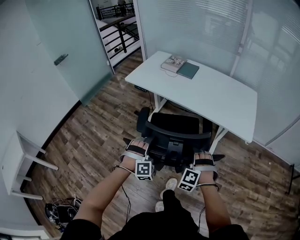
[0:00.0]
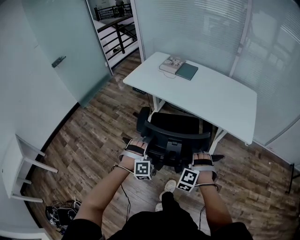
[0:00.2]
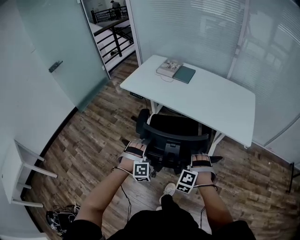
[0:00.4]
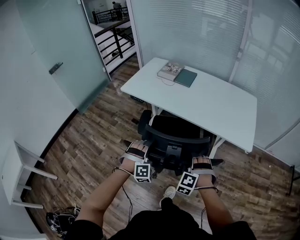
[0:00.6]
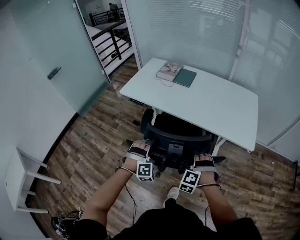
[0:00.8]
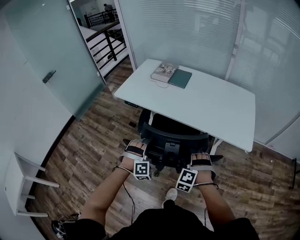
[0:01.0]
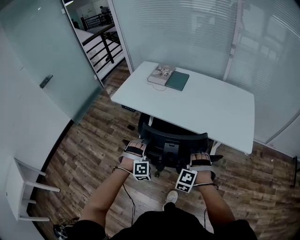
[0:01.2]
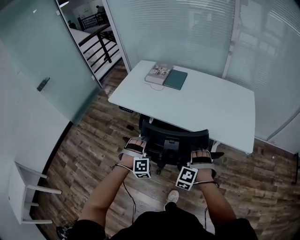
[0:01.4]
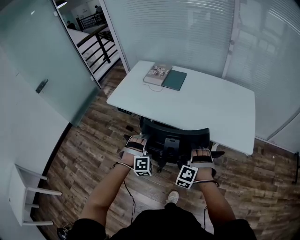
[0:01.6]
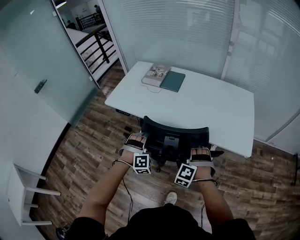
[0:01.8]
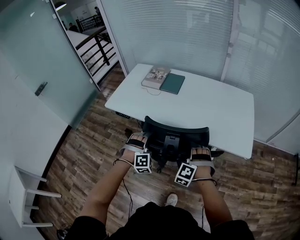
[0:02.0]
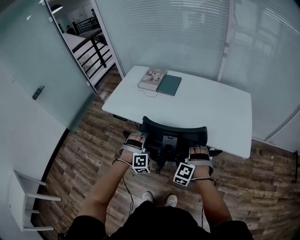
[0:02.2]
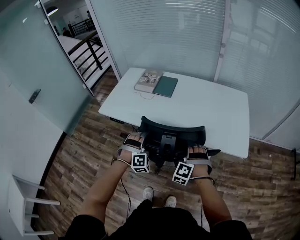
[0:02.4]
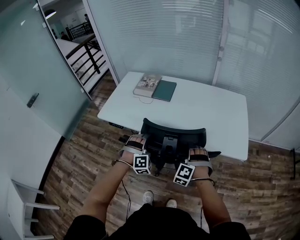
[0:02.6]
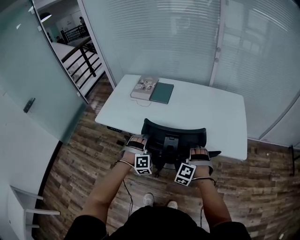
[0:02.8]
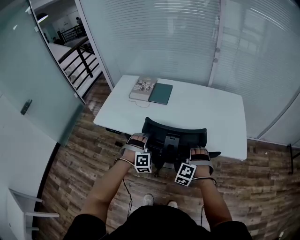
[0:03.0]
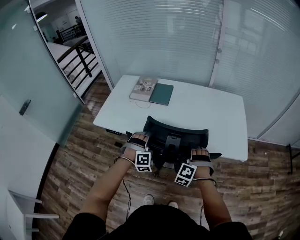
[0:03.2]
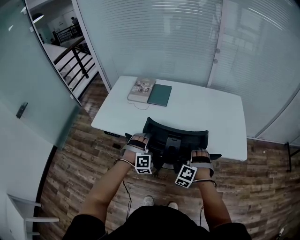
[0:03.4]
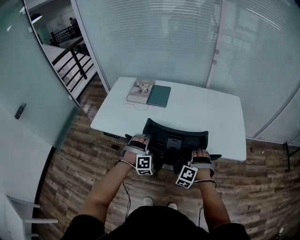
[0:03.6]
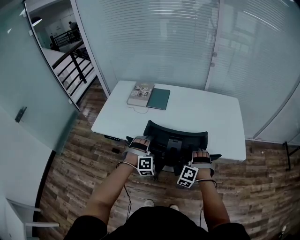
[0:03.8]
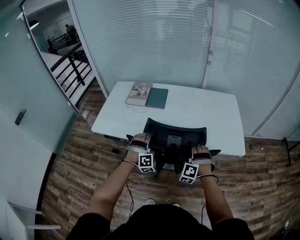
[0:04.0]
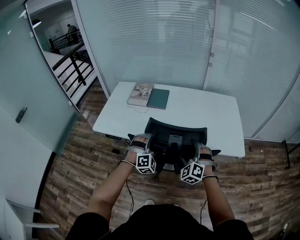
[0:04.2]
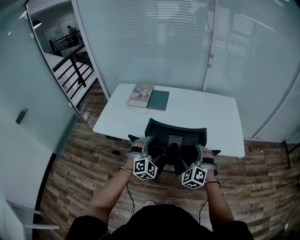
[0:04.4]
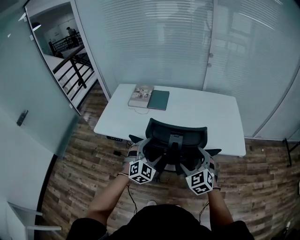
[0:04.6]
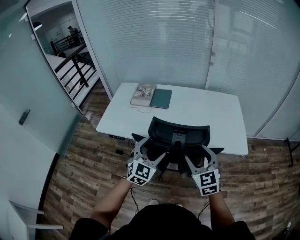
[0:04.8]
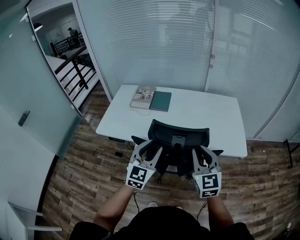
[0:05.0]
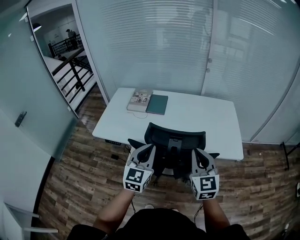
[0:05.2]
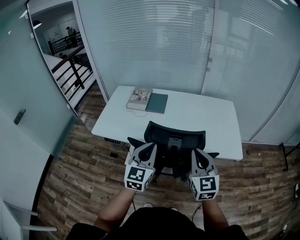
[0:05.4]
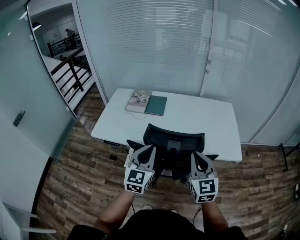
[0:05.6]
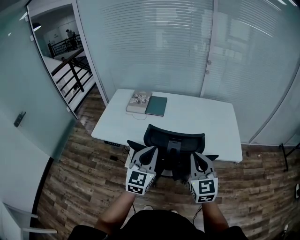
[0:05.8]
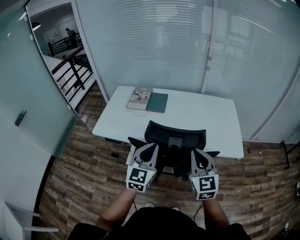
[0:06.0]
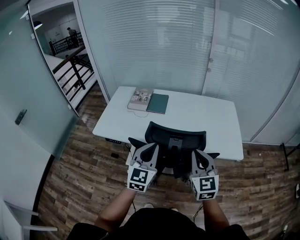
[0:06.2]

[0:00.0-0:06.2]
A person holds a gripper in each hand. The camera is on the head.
0:00.0 to 0:01.6: The left gripper changes place by roughly 20 cm.
0:01.6 to 0:03.2: The left gripper moves roughly 15 cm.
0:03.2 to 0:04.6: The left gripper goes approximately 10 cm upward, and rotates about 40 degrees.
0:04.6 to 0:06.2: The left gripper goes about 10 cm upward, turns by some 40 degrees, and closes up.

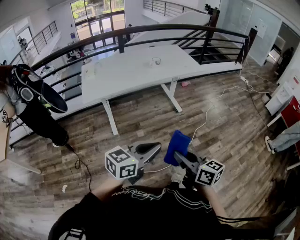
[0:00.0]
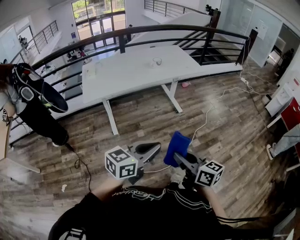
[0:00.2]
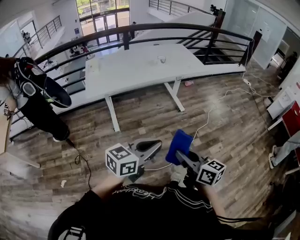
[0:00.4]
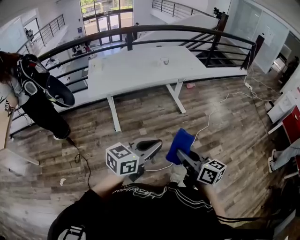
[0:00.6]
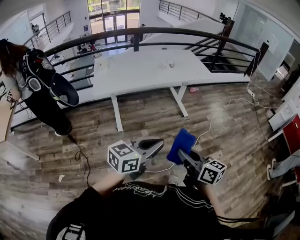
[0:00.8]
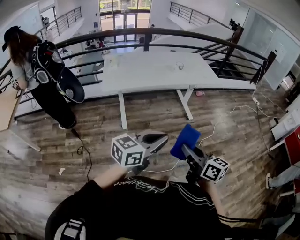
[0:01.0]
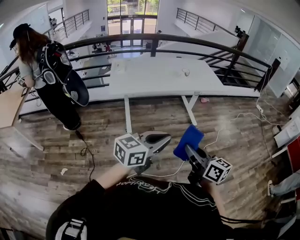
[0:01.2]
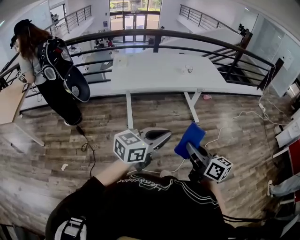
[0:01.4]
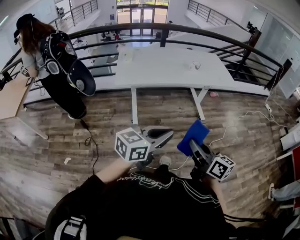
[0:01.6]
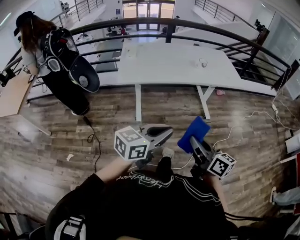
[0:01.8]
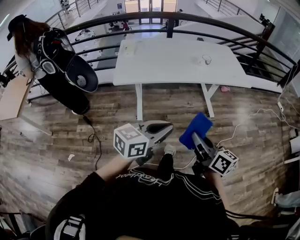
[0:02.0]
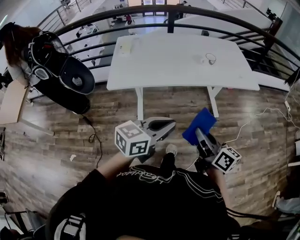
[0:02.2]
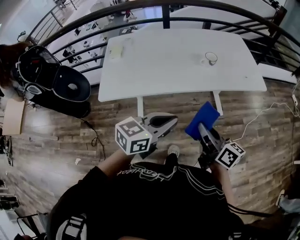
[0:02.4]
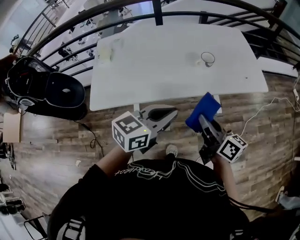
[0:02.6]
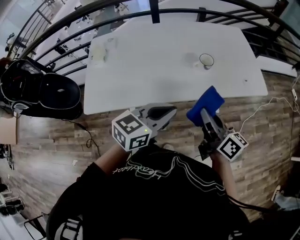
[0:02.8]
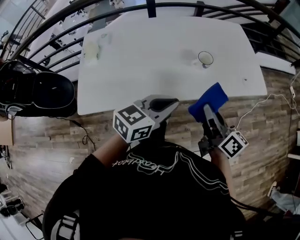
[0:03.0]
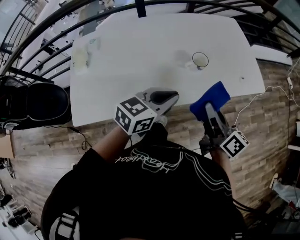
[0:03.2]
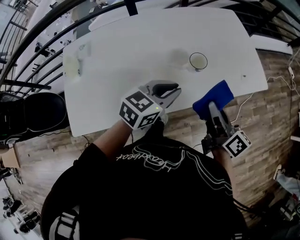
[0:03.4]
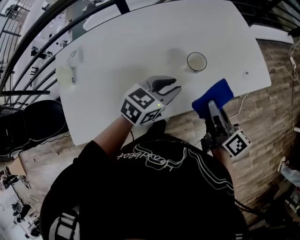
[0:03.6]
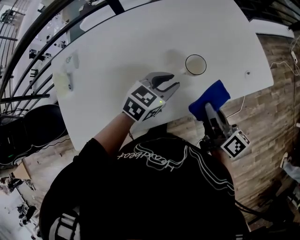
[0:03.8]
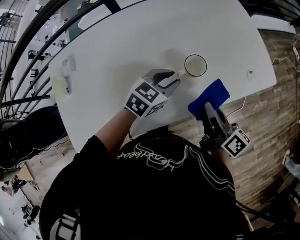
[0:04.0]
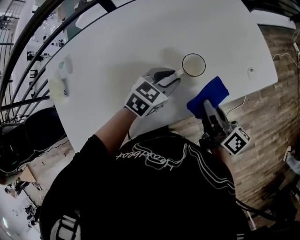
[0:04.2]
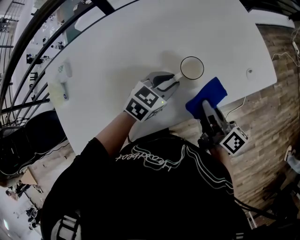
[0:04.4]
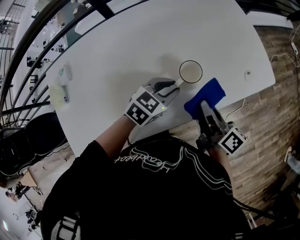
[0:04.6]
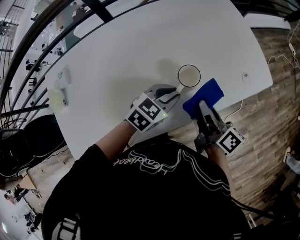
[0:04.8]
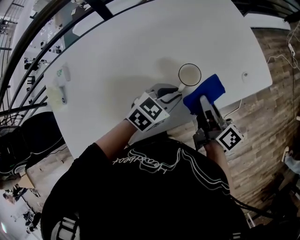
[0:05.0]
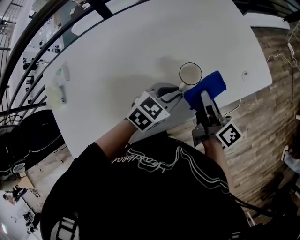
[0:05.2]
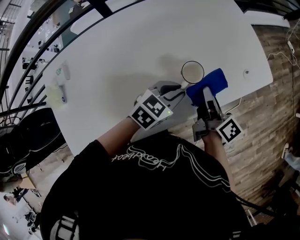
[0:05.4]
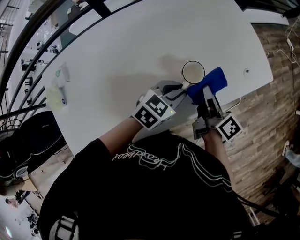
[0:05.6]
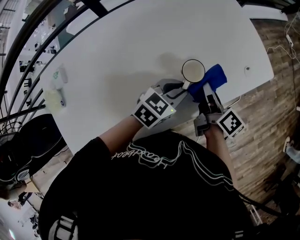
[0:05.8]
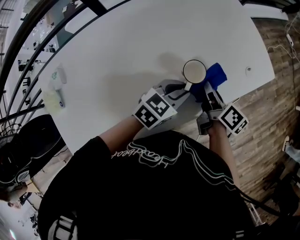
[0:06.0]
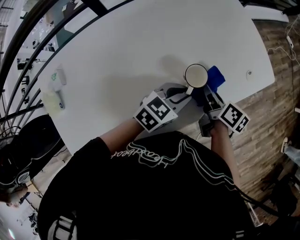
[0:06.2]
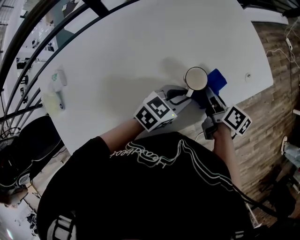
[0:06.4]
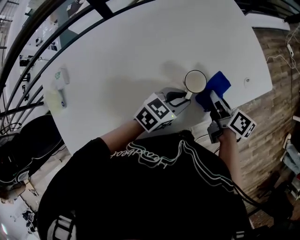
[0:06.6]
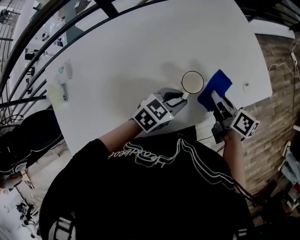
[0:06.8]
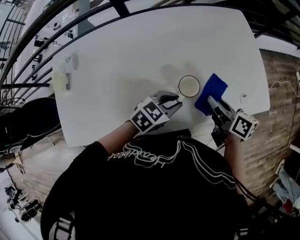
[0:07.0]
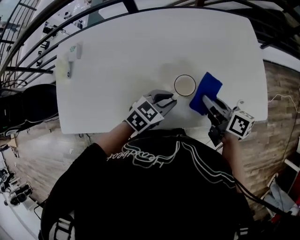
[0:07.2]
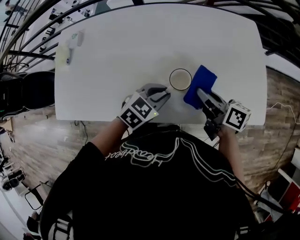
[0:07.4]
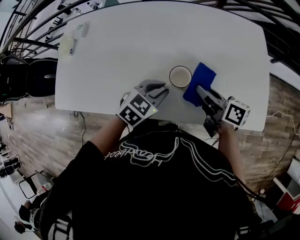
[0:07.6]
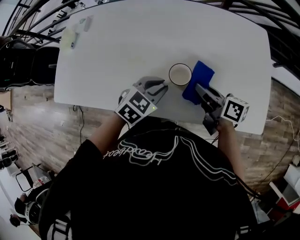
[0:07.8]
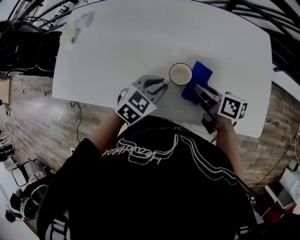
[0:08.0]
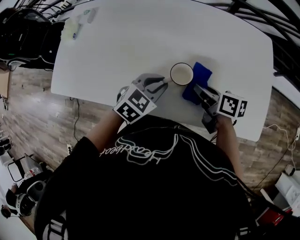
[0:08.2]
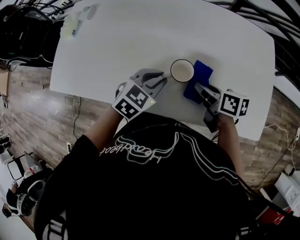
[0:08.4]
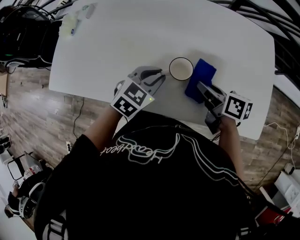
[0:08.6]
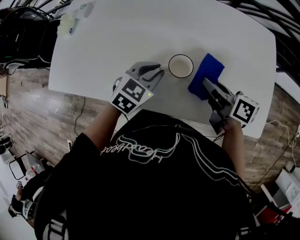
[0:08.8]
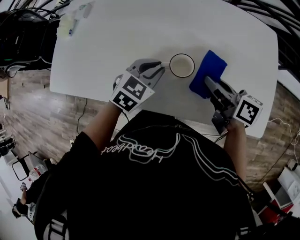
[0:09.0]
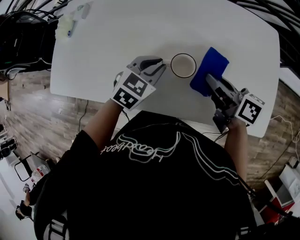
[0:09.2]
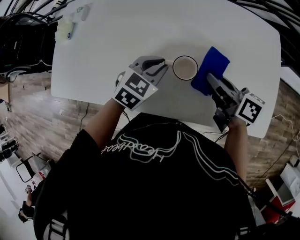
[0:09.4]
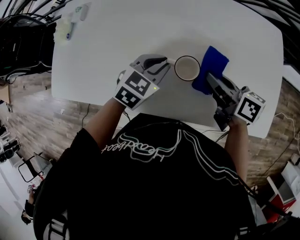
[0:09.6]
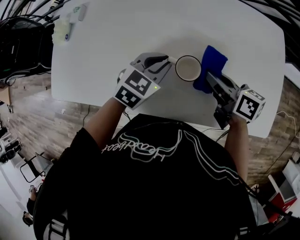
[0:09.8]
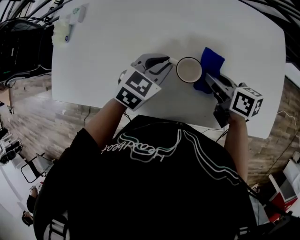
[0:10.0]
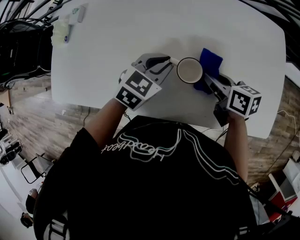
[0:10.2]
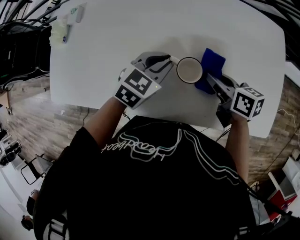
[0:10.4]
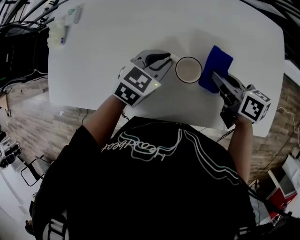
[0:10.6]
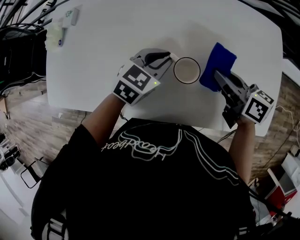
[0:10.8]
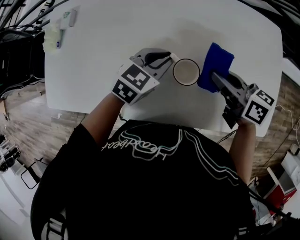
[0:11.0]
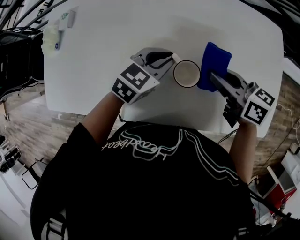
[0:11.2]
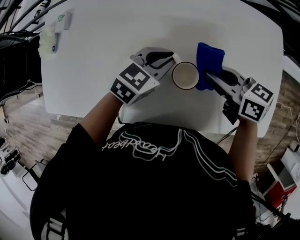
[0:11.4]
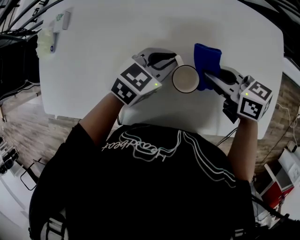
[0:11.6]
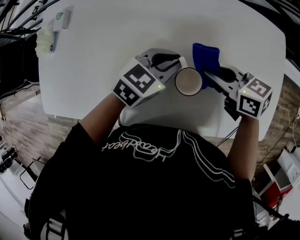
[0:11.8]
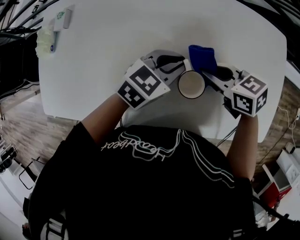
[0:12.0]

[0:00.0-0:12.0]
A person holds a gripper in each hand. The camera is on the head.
0:00.0 to 0:01.6: Both grippers travel together to the left, about 10 cm.
0:01.6 to 0:03.0: The two grippers travel together, forward, roughly 60 cm.
0:03.0 to 0:04.4: The grippers both shift forward and downward by about 25 cm. The right gripper turns by approximately 20 degrees; the left gripper swivels approximately 30 degrees, and opens its fingers.
0:04.4 to 0:06.0: The right gripper travels forward and downward by some 10 cm.
0:06.0 to 0:07.6: The left gripper turns by roughly 30 degrees. The right gripper goes approximately 5 cm upward, and turns by roughly 60 degrees.
0:07.6 to 0:09.0: The left gripper moves roughly 5 cm.
0:09.0 to 0:10.4: The left gripper heads forward, covering approximately 5 cm, while the right gripper heads downward, covering roughly 5 cm.
0:10.4 to 0:12.0: The right gripper changes place by approximately 10 cm, and turns by approximately 30 degrees. The left gripper ends up about 5 cm from where it was.

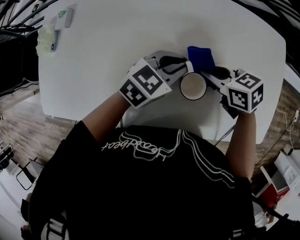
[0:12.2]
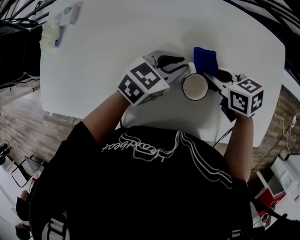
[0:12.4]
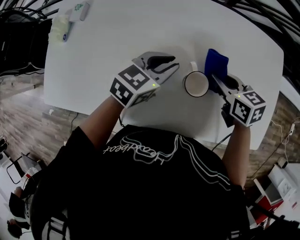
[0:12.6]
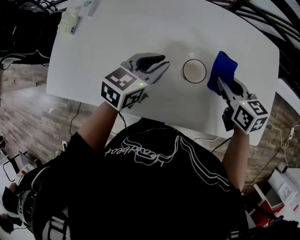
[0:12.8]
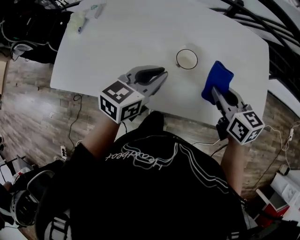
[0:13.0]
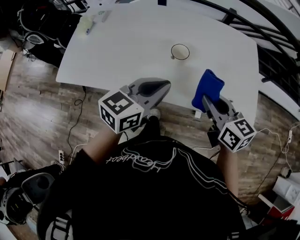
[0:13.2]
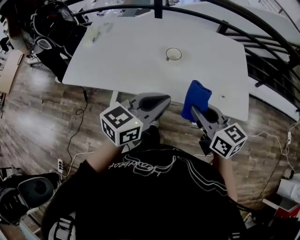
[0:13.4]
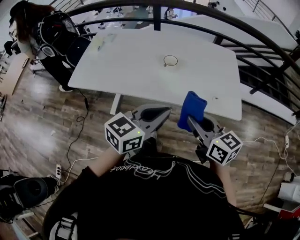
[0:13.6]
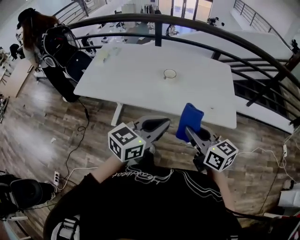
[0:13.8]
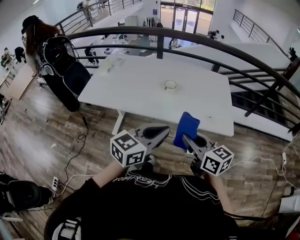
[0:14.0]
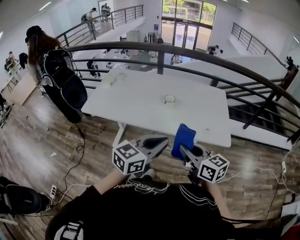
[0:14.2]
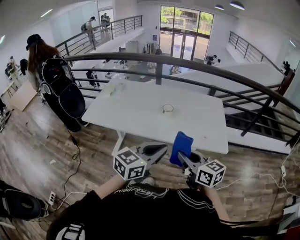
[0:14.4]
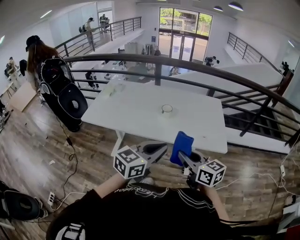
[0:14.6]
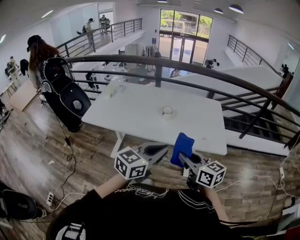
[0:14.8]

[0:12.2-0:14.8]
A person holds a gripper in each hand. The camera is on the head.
0:12.2 to 0:13.4: The left gripper changes place by some 40 cm, and rotates approximately 30 degrees. Meanwhile the right gripper changes place by some 40 cm, and changes its angle by about 40 degrees.
0:13.4 to 0:14.8: Both grippers travel together backward and upward, about 20 cm.

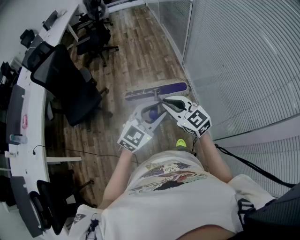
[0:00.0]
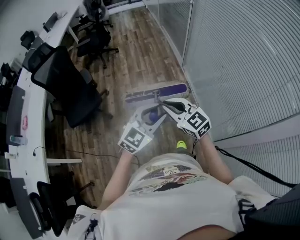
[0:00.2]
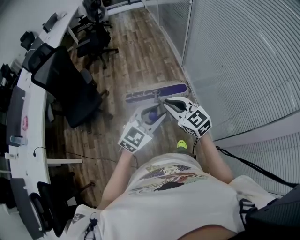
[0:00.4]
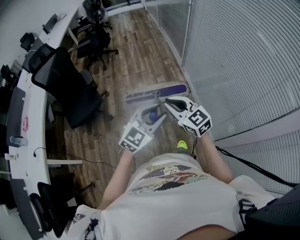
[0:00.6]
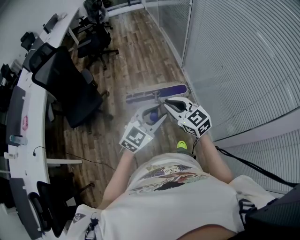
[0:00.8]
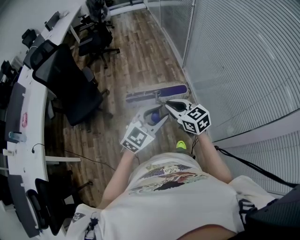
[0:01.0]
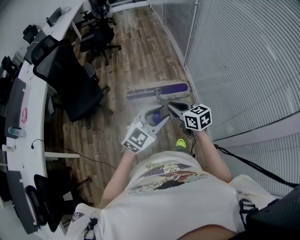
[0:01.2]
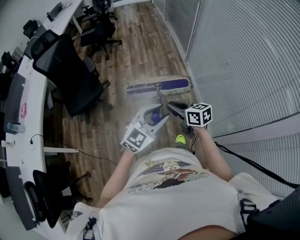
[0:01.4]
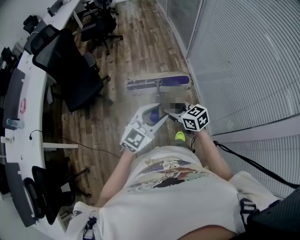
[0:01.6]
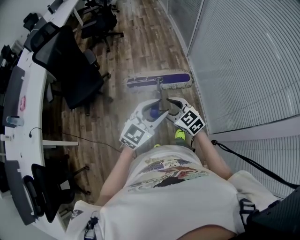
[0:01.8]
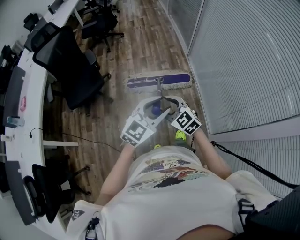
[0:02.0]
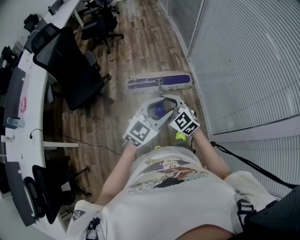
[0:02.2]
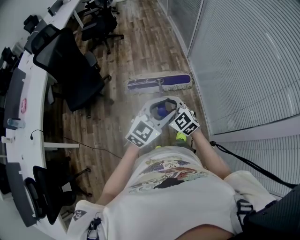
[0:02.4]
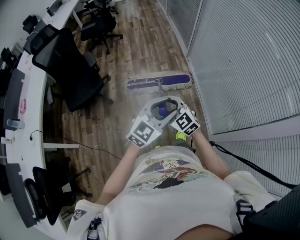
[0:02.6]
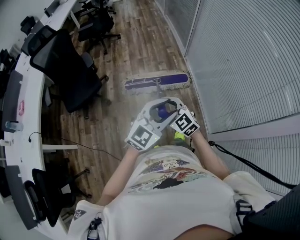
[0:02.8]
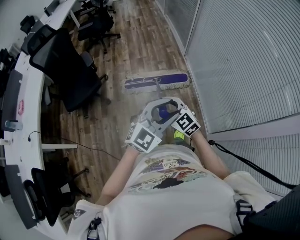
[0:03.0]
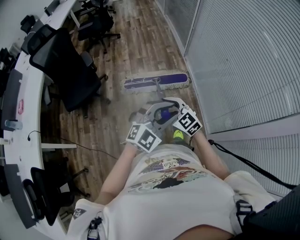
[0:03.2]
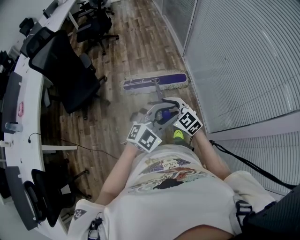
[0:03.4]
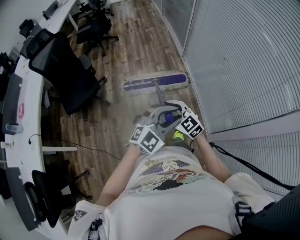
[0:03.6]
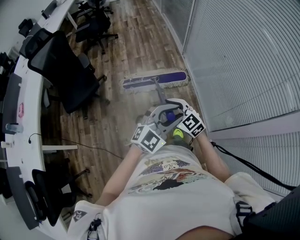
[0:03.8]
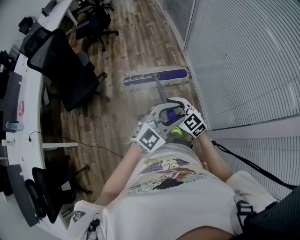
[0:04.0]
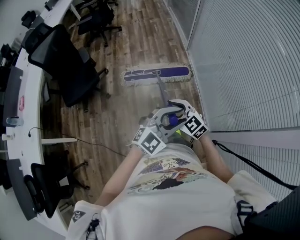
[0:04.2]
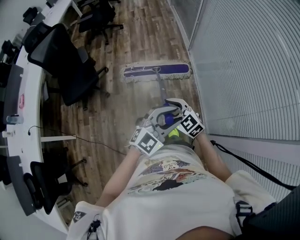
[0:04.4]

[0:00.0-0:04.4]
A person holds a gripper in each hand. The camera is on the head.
0:00.0 to 0:01.4: The right gripper shifts some 10 cm downward, and rotates some 40 degrees; the left gripper goes some 5 cm backward.
0:01.4 to 0:03.0: The right gripper heads to the left, covering roughly 5 cm, rotates around the line of its fingers by some 40 degrees, counterclockwise from behind, and opens up.
0:03.0 to 0:04.4: The right gripper is displaced to the right and forward by roughly 10 cm; the left gripper shifts roughly 15 cm to the right, forward and downward.
